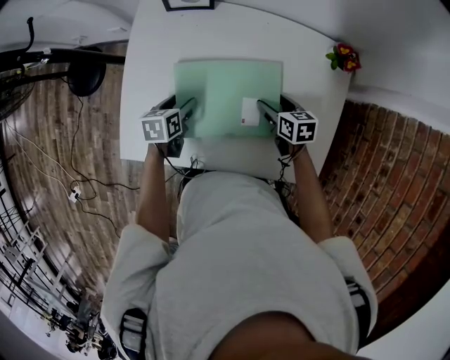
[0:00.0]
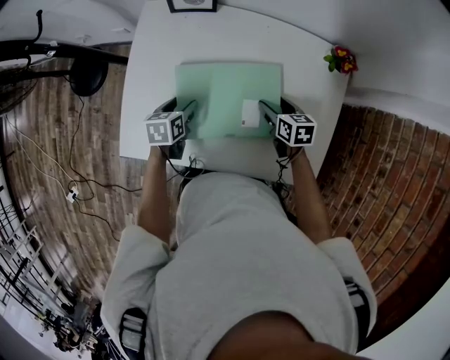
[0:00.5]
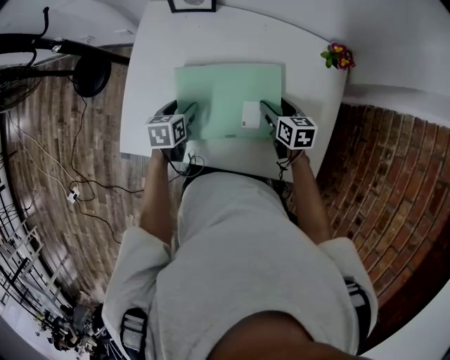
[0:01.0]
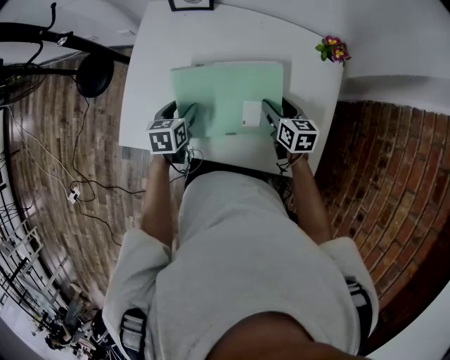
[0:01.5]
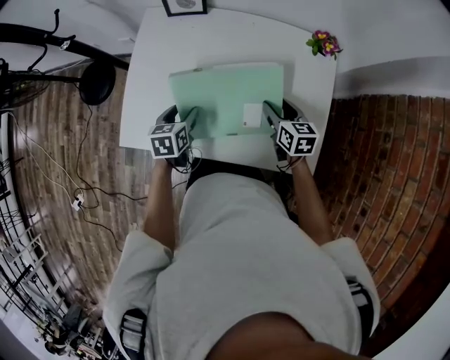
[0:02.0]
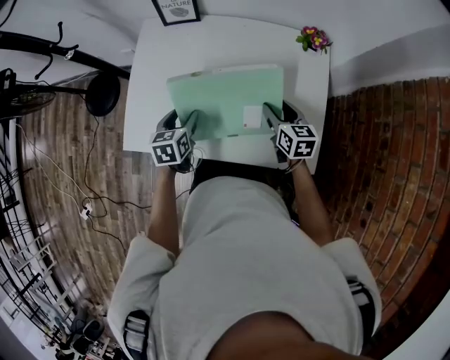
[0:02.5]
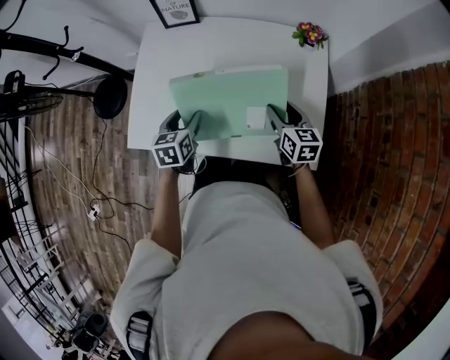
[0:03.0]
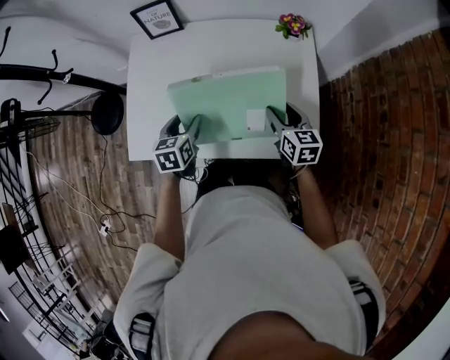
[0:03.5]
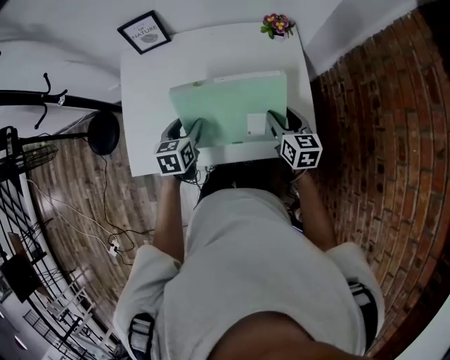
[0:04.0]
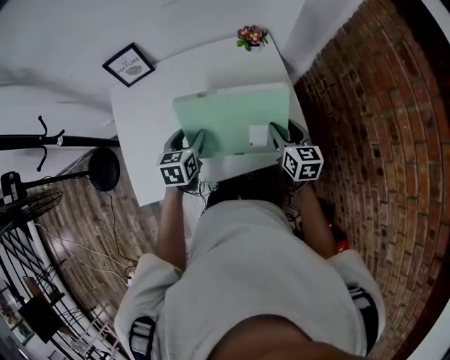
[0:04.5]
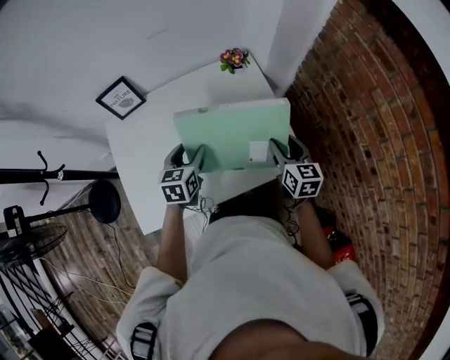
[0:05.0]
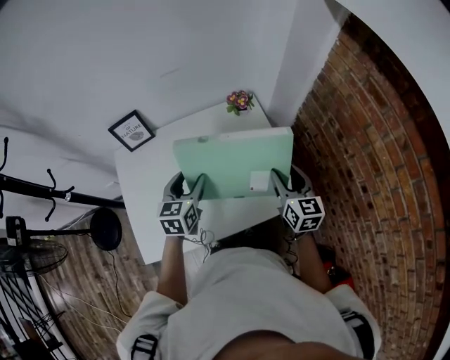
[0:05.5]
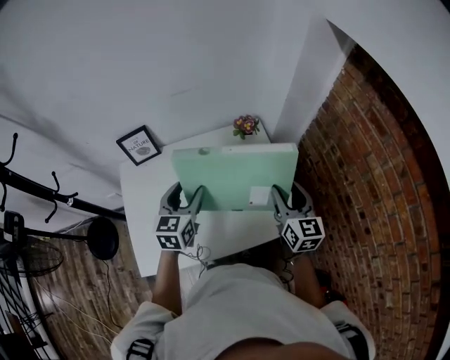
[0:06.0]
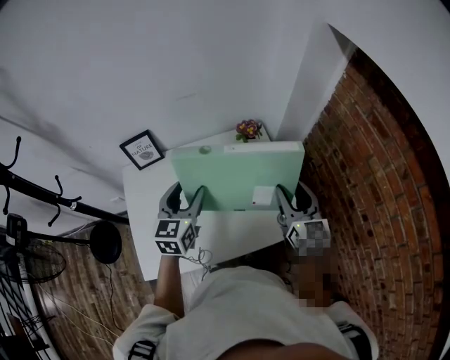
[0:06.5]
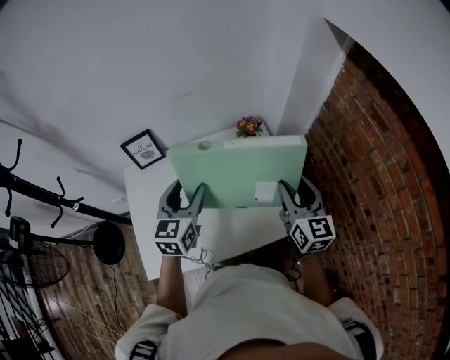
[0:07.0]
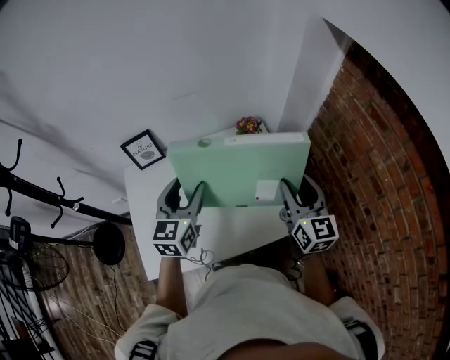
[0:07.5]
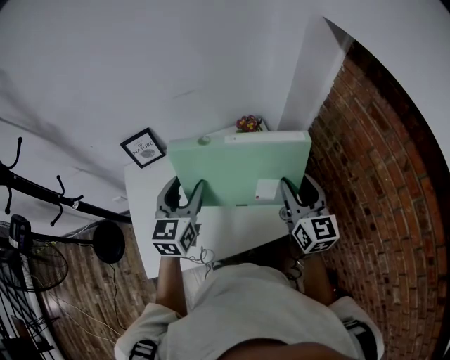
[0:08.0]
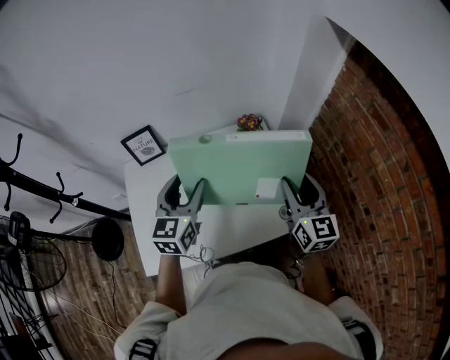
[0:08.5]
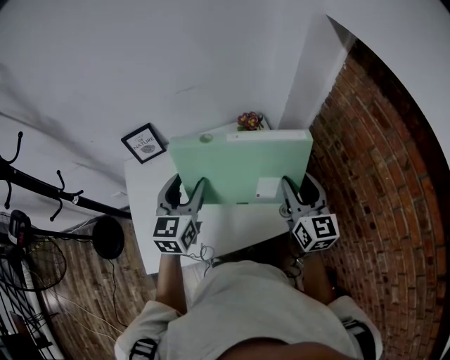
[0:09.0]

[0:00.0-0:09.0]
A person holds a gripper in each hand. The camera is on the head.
0:00.0 to 0:02.0: The left gripper travels backward and upward by some 10 cm. Meanwhile the right gripper goes some 10 cm upward and backward.
0:02.0 to 0:04.5: The right gripper moves roughly 15 cm, and swivels approximately 30 degrees; the left gripper moves roughly 15 cm, and changes its angle by about 30 degrees.
0:04.5 to 0:07.0: Both grippers move upward, approximately 20 cm. The right gripper changes its angle by about 20 degrees. The left gripper turns by roughly 30 degrees.
0:07.0 to 0:09.0: The grippers stay close to where they were, moving slightly.

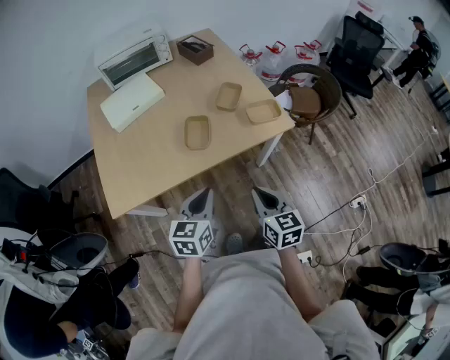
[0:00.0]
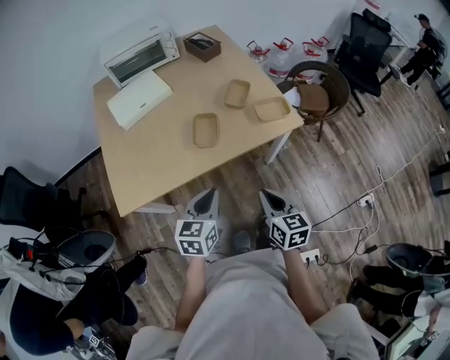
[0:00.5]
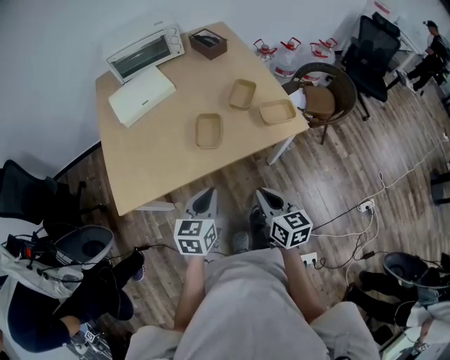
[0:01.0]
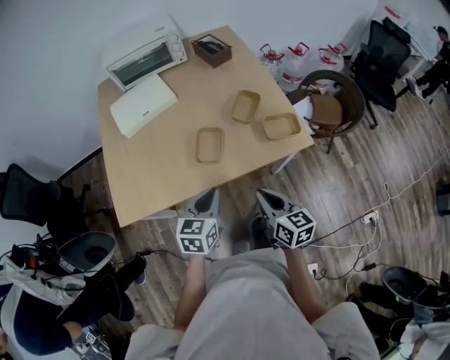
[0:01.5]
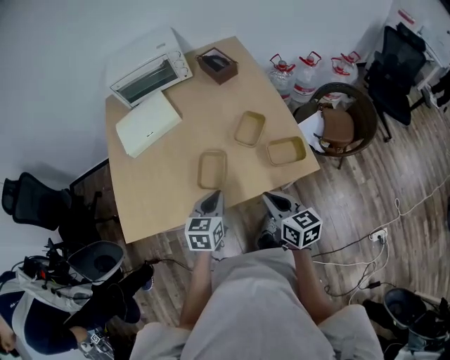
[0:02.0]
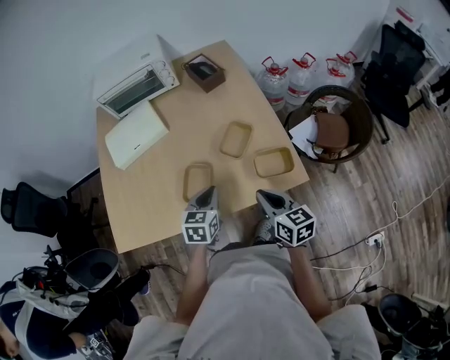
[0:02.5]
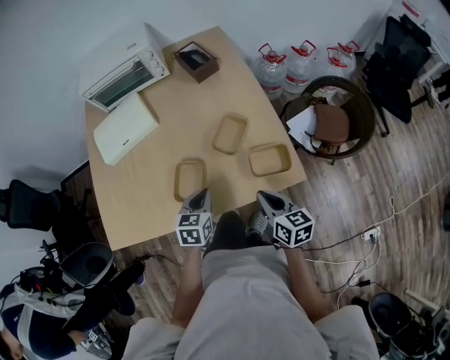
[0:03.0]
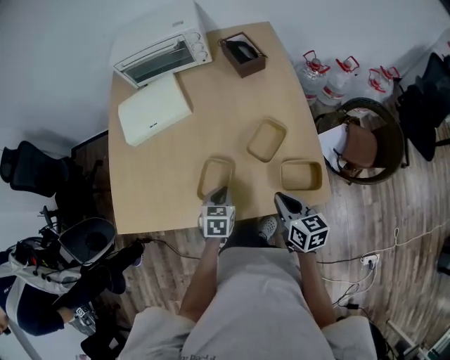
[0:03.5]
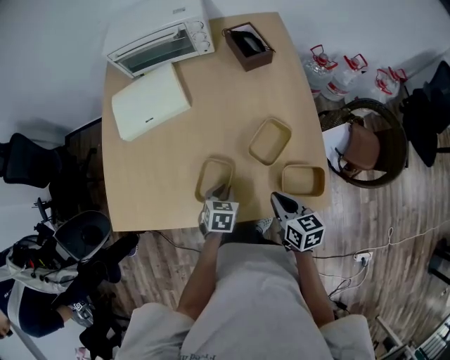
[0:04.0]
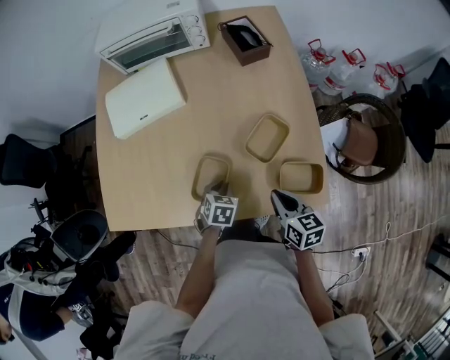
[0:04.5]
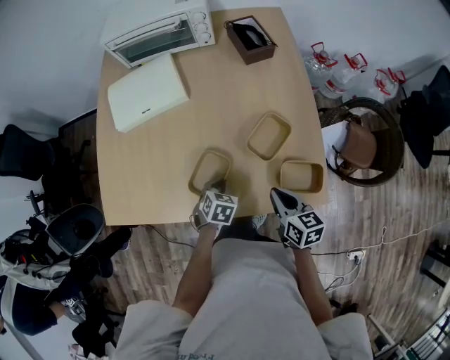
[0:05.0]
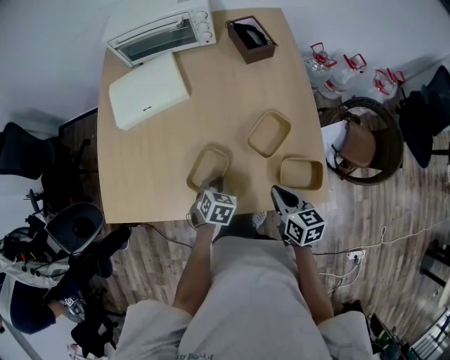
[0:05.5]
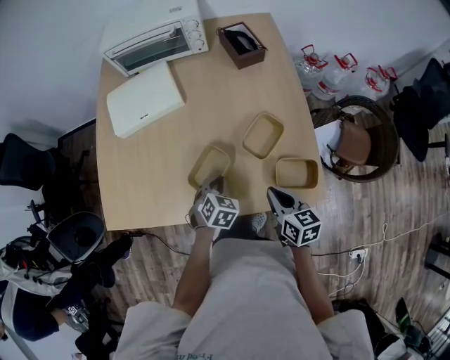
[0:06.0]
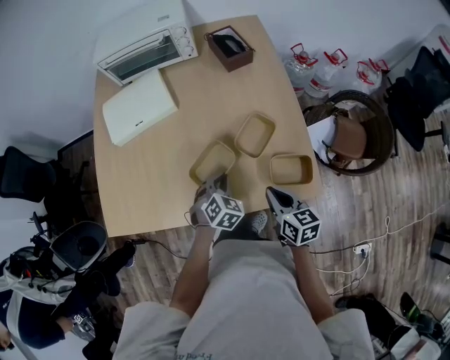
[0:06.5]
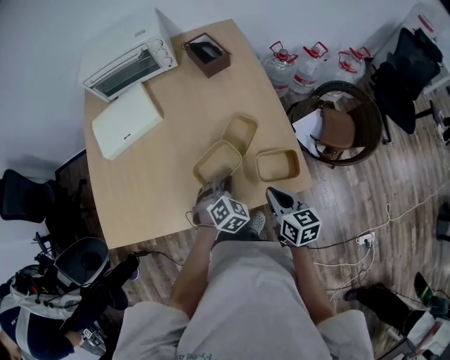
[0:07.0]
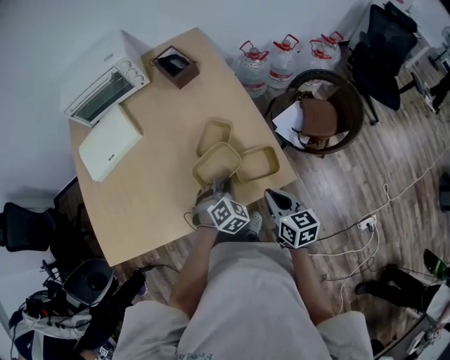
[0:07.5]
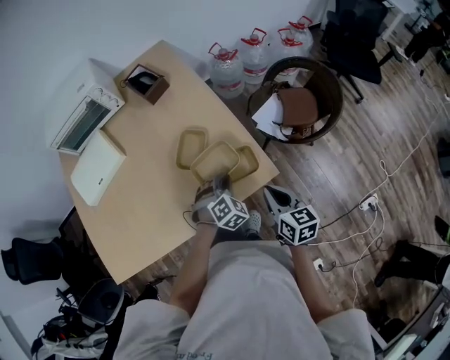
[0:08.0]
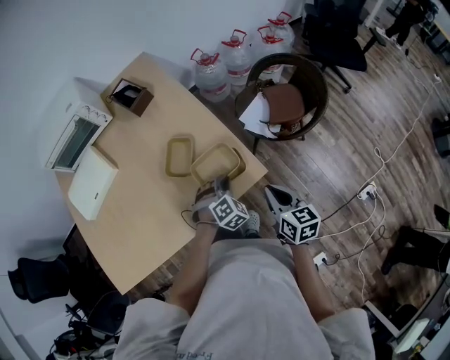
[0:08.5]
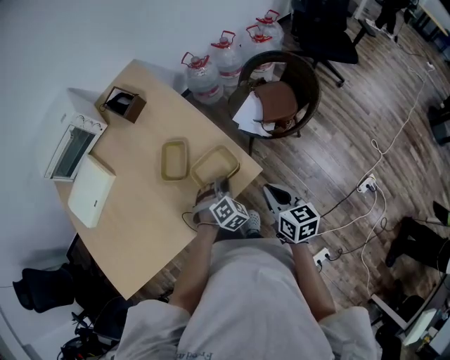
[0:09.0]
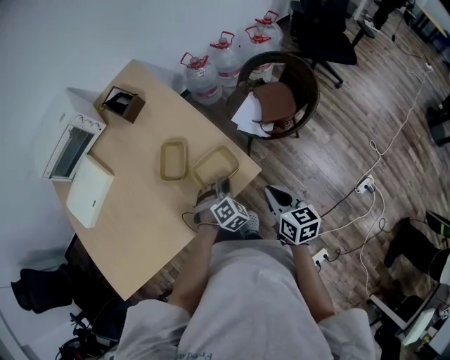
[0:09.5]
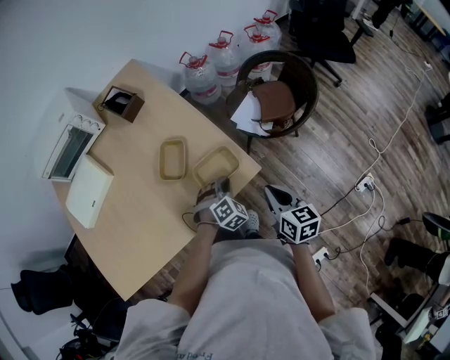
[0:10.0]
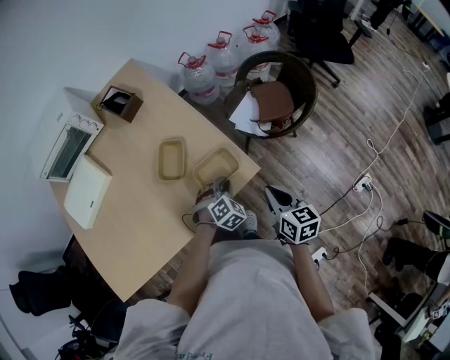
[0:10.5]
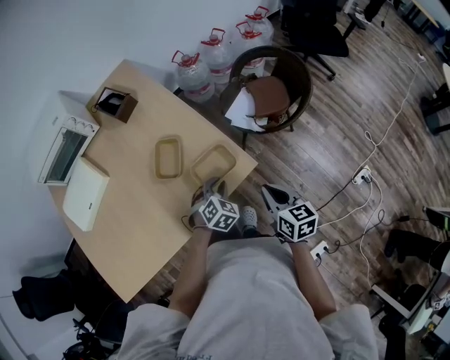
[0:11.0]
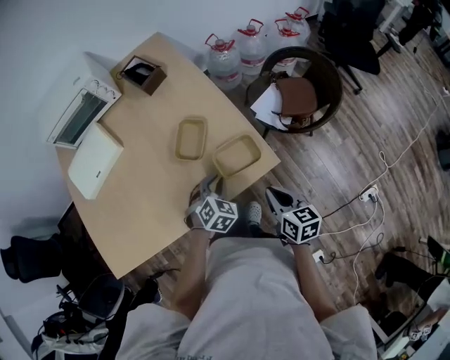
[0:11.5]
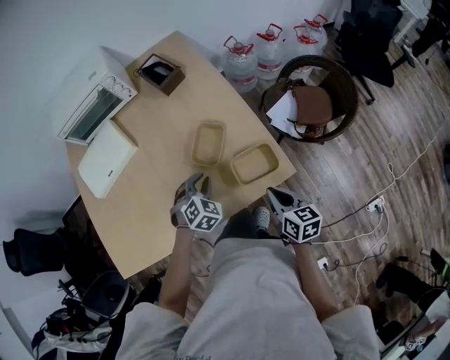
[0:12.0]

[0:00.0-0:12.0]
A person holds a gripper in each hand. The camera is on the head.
0:00.0 to 0:02.0: The two grippers go roughly 20 cm forward.
0:02.0 to 0:04.0: The right gripper travels forward and downward by roughly 20 cm; the left gripper shifts roughly 20 cm downward and forward, and changes its angle by some 30 degrees.
0:04.0 to 0:06.0: The grippers make only small movements.
0:06.0 to 0:08.0: The left gripper is displaced to the right by approximately 25 cm, and rotates around the line of its fingers by some 40 degrees, clockwise from behind. The right gripper is displaced to the right and backward by approximately 20 cm, and turns by some 30 degrees.
0:08.0 to 0:10.0: Both grippers travel together to the right, approximately 5 cm.
0:10.0 to 0:12.0: The left gripper shifts about 20 cm to the left, and swivels some 20 degrees. Meanwhile the right gripper moves to the left, roughly 10 cm.

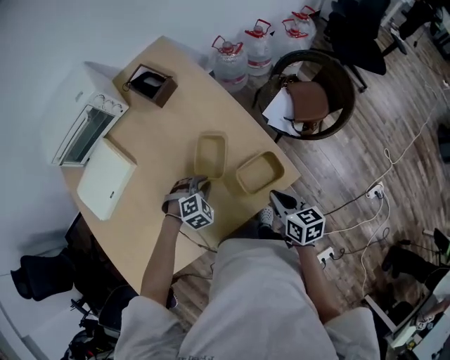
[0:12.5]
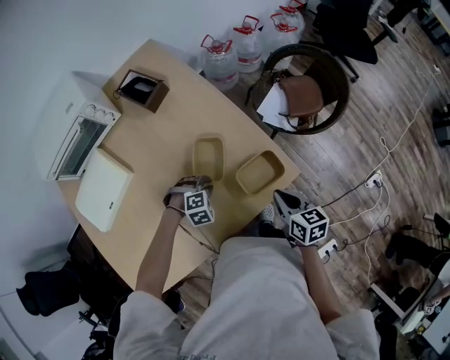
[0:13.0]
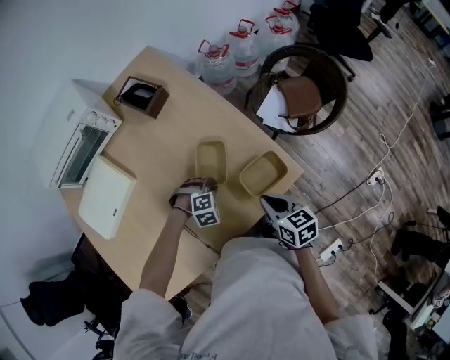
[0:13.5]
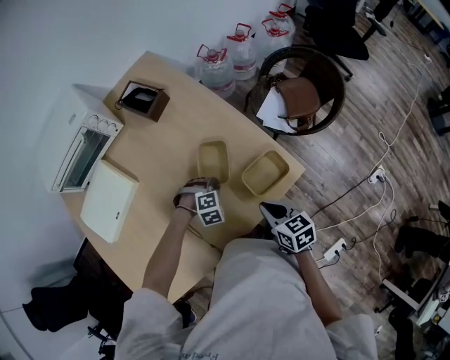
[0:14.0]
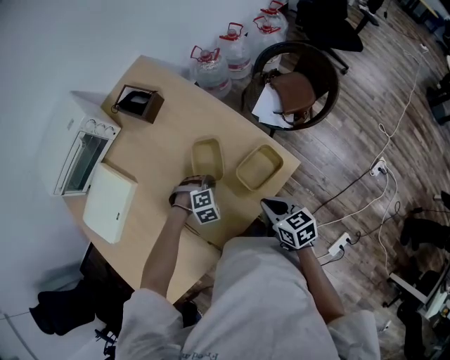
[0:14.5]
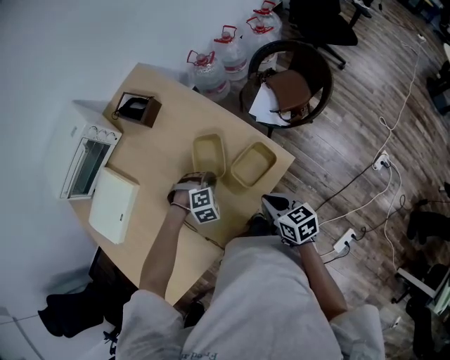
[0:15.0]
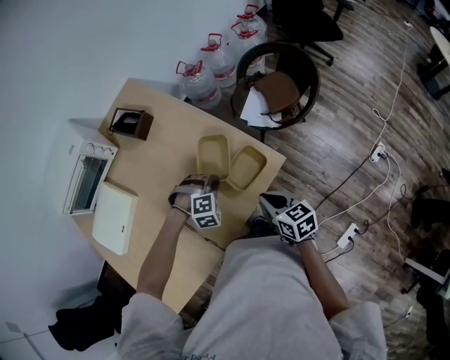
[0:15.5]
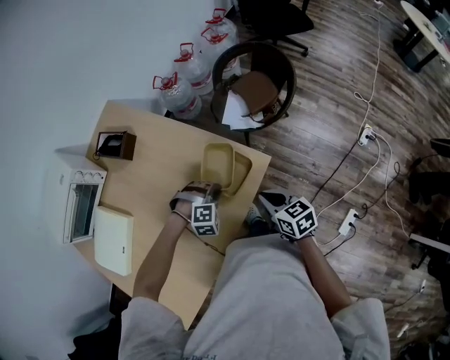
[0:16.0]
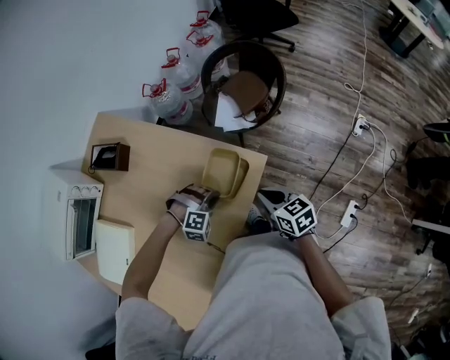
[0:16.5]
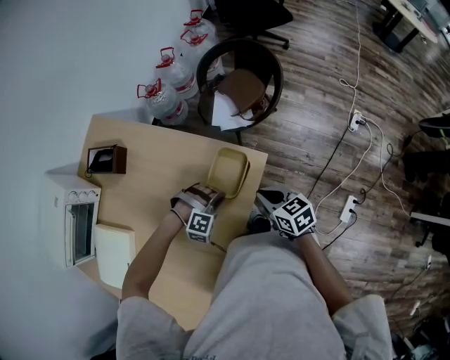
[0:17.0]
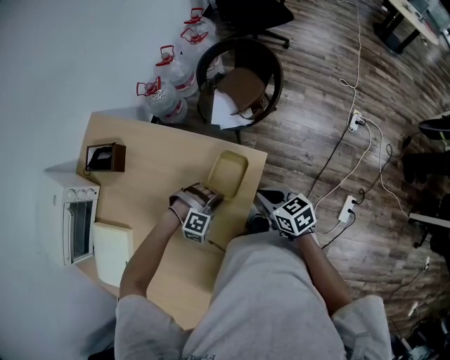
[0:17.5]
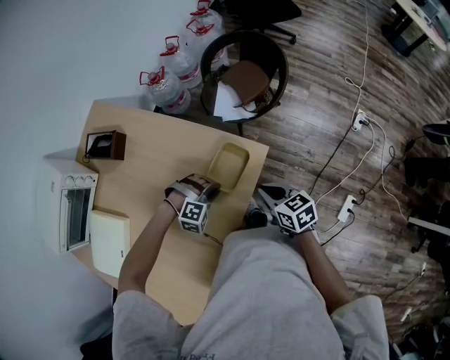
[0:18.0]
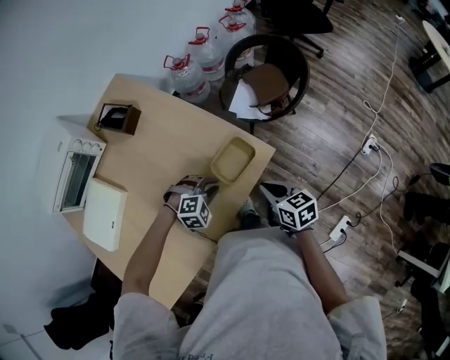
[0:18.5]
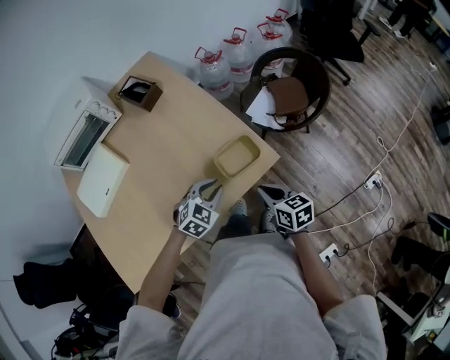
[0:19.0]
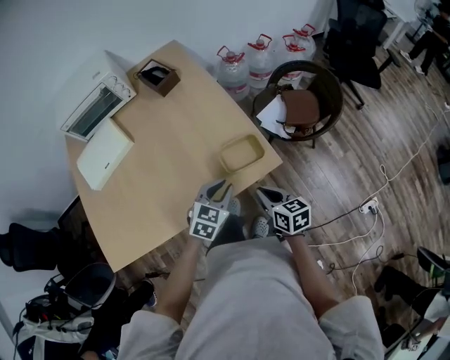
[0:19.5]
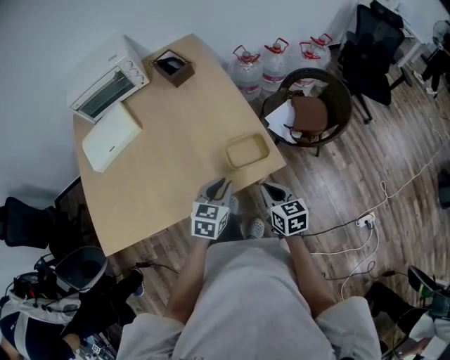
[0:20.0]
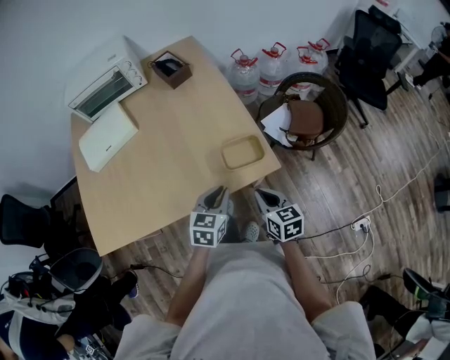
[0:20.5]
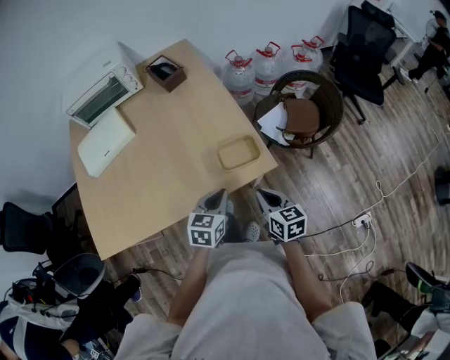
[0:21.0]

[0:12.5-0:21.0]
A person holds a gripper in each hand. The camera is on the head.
0:12.5 to 0:14.5: The right gripper heads to the left, covering roughly 5 cm. The left gripper swivels some 20 degrees.
0:14.5 to 0:16.5: The right gripper shifts by approximately 10 cm. The left gripper ends up roughly 15 cm from where it was, and rotates around the line of its fingers by some 40 degrees, clockwise from behind.
0:16.5 to 0:19.0: The left gripper shifts roughly 10 cm upward, and rotates around the line of its fingers by some 70 degrees, counterclockwise from behind.
0:19.0 to 0:21.0: The left gripper heads backward, covering some 5 cm, and twists about 50 degrees counterclockwise, seen from behind.
